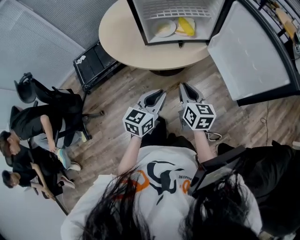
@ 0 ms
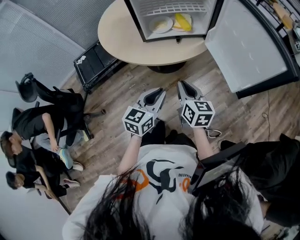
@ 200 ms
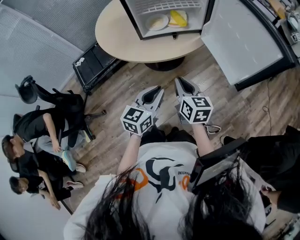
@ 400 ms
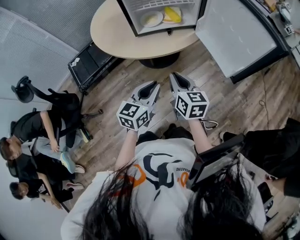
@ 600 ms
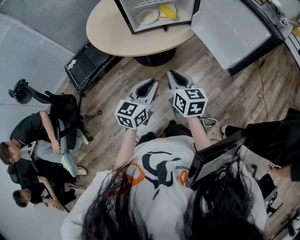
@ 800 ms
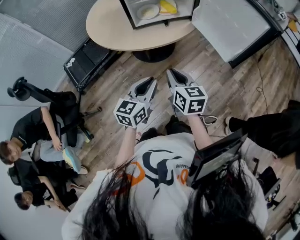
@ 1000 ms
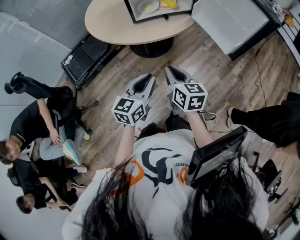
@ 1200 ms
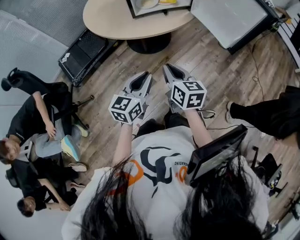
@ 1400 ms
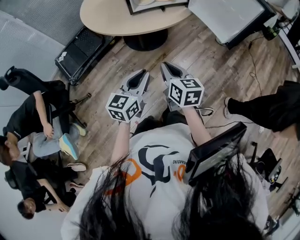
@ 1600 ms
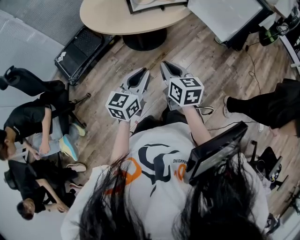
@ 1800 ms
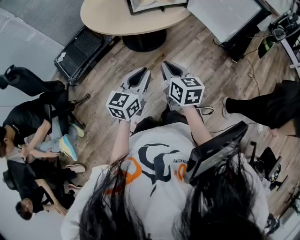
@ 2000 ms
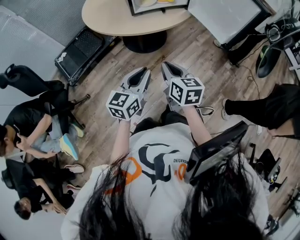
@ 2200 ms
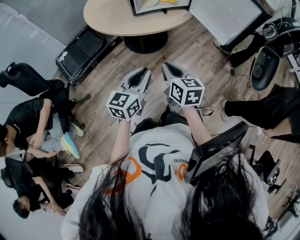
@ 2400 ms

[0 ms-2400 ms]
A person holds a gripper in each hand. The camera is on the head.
0 ms to 1200 ms: Both grippers move backward, roughly 15 cm.
1200 ms to 2400 ms: The right gripper changes place by roughly 5 cm. Meanwhile the left gripper ends up roughly 5 cm from where it was.

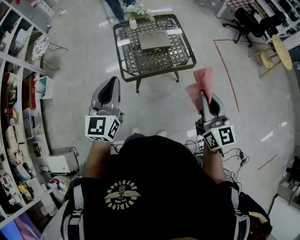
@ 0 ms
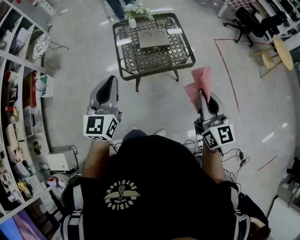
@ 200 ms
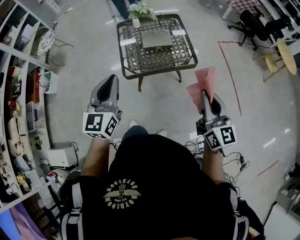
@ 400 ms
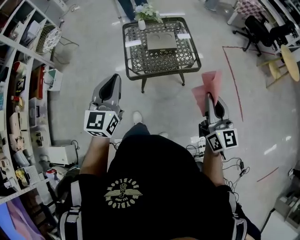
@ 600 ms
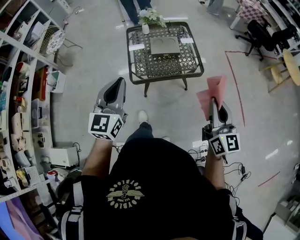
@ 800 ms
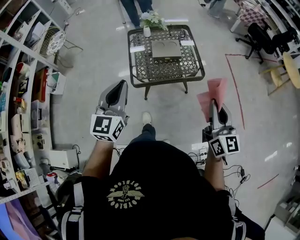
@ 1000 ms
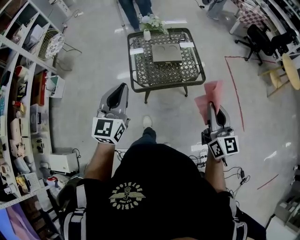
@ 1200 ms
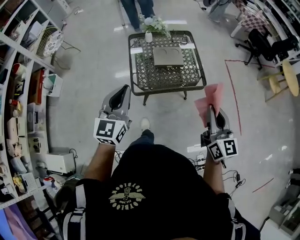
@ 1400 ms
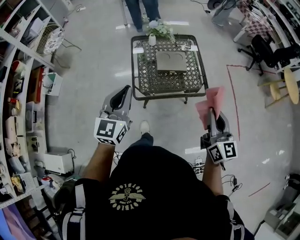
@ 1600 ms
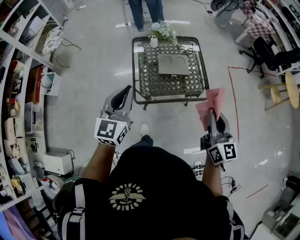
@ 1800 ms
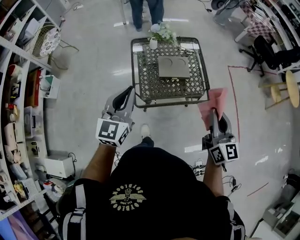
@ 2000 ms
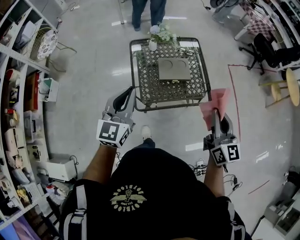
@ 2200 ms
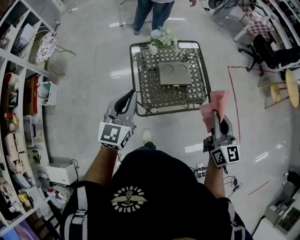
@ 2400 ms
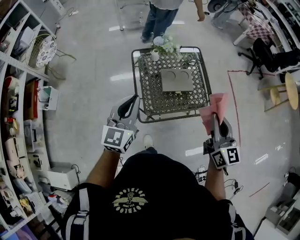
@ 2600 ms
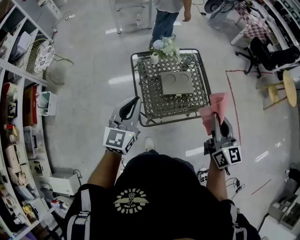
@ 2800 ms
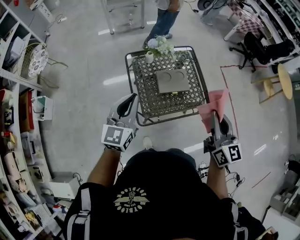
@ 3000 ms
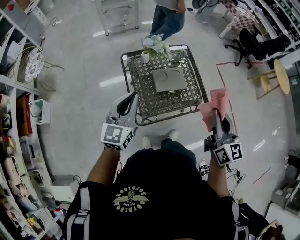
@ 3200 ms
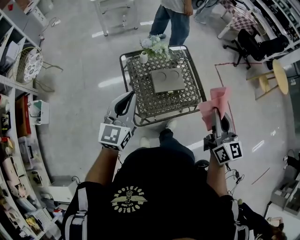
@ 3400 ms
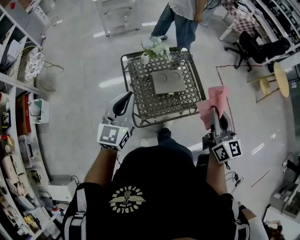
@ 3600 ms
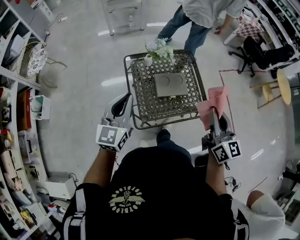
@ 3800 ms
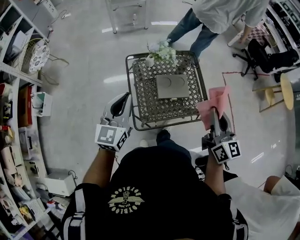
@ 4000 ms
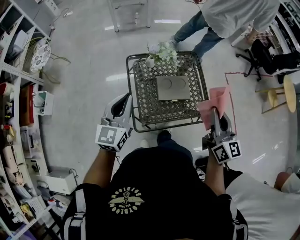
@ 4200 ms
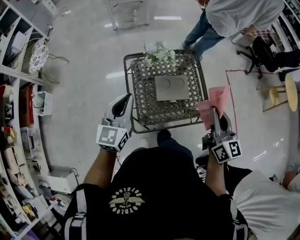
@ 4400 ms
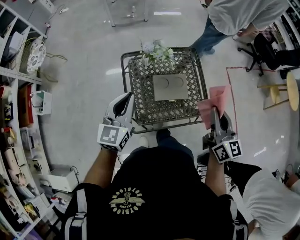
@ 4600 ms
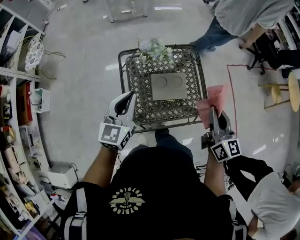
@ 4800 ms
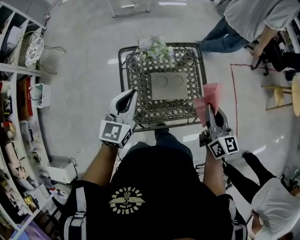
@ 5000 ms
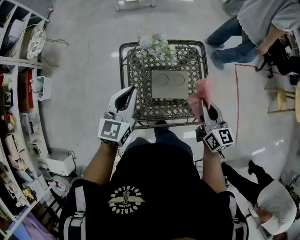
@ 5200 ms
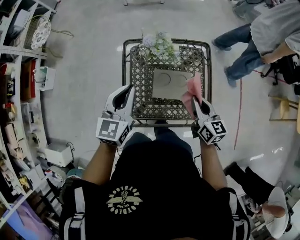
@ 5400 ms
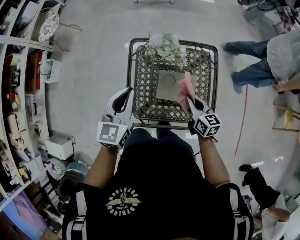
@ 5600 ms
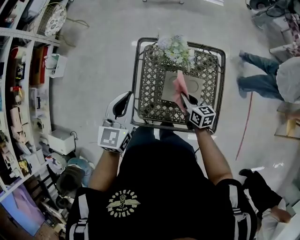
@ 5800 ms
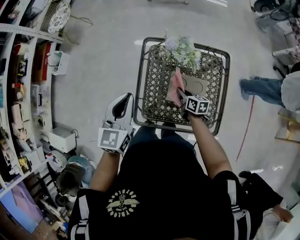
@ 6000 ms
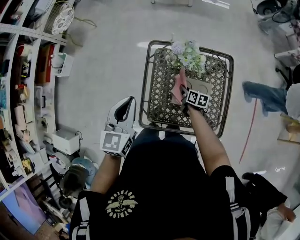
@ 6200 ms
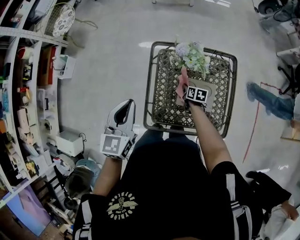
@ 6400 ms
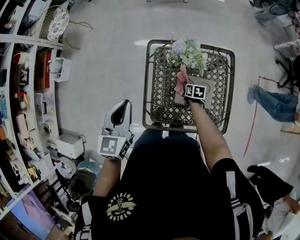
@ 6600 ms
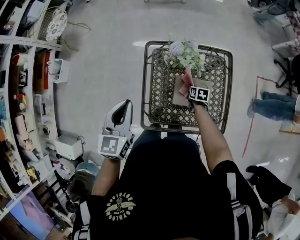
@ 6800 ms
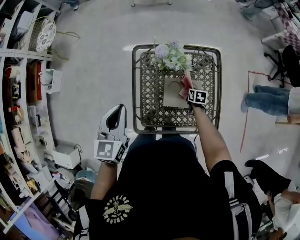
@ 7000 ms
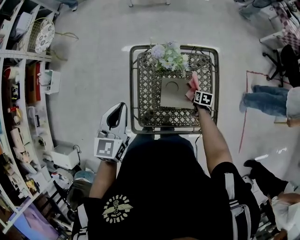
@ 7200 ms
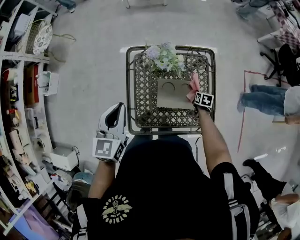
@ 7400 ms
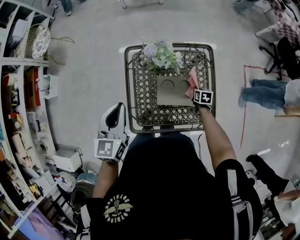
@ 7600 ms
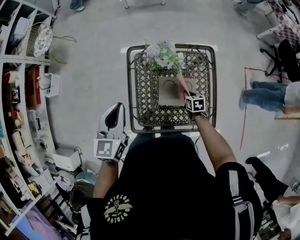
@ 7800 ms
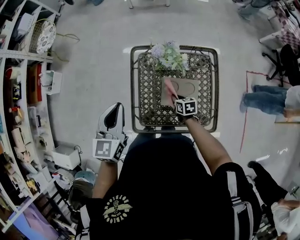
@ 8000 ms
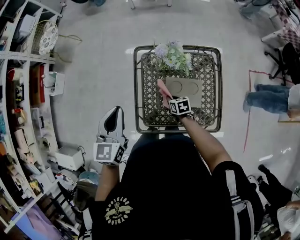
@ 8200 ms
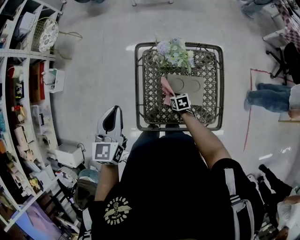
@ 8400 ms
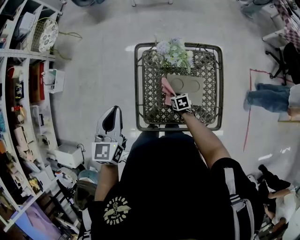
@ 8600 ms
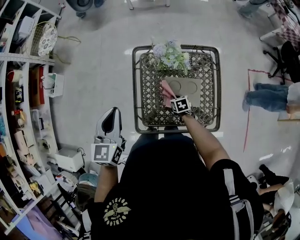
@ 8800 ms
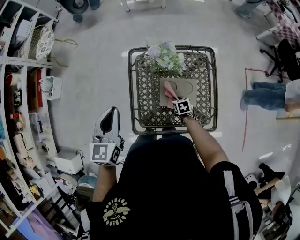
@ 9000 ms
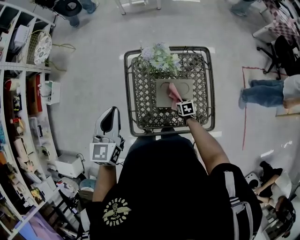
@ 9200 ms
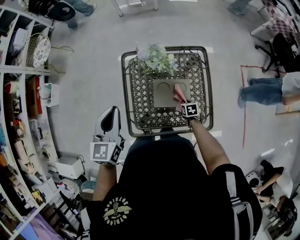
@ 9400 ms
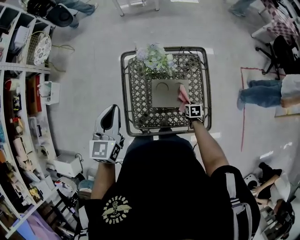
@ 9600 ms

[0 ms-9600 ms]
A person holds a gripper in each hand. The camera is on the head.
0 ms to 1600 ms: Both grippers travel together forward, about 10 cm.
1600 ms to 3200 ms: The right gripper travels forward and to the left by approximately 20 cm, while the left gripper moves forward, about 20 cm.
3200 ms to 4800 ms: Both grippers travel together forward and downward, some 15 cm.
4800 ms to 6400 ms: The right gripper shifts some 40 cm downward, and angles its fingers downward, by some 40 degrees. Meanwhile the left gripper changes place by about 10 cm, and rotates approximately 20 degrees.
6400 ms to 8000 ms: The right gripper shifts roughly 5 cm backward, and moves approximately 20 cm to the right and comes back.
8000 ms to 9600 ms: The right gripper is displaced to the right, backward and downward by about 20 cm; the left gripper changes place by about 5 cm.

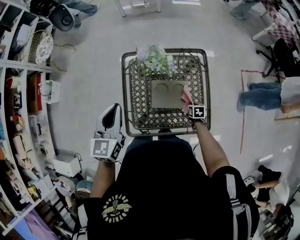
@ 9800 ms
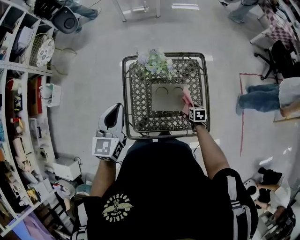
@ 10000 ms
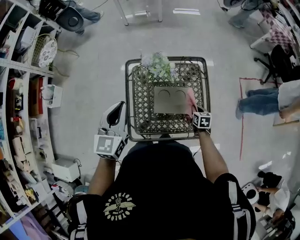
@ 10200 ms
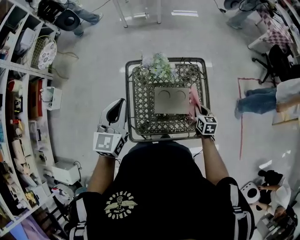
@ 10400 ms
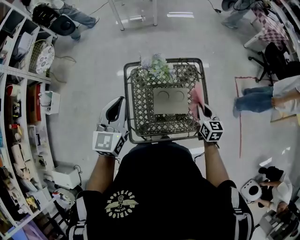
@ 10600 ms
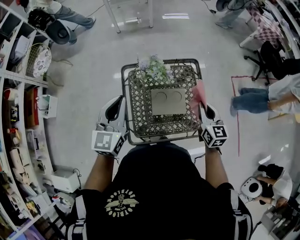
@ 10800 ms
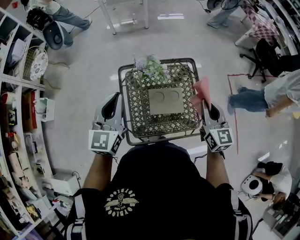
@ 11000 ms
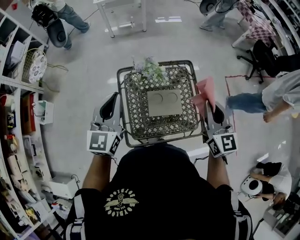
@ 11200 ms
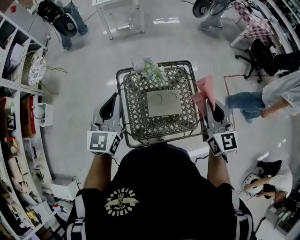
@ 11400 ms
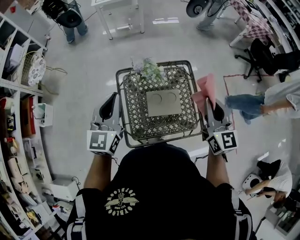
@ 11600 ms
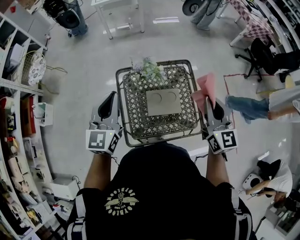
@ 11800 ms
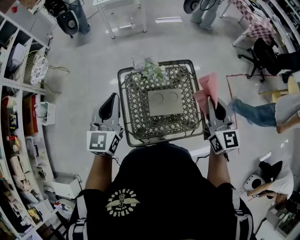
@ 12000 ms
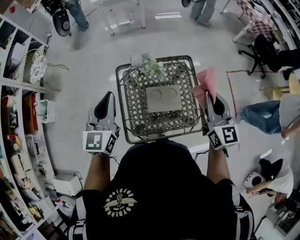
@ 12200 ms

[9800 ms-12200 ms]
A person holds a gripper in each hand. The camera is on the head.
9800 ms to 11000 ms: The right gripper shifts roughly 40 cm upward, and points its fingers roughly 50 degrees further upward, while the left gripper heads upward, covering about 10 cm.
11000 ms to 12200 ms: The right gripper goes approximately 5 cm upward.

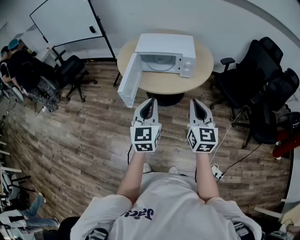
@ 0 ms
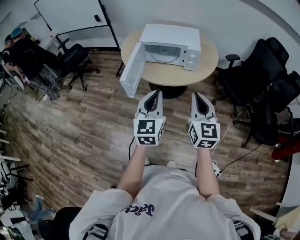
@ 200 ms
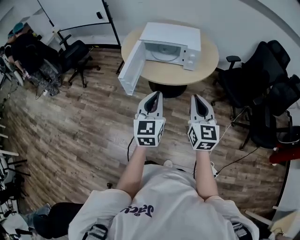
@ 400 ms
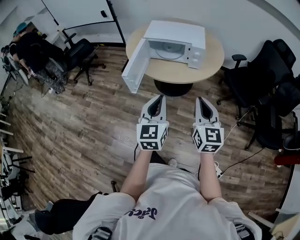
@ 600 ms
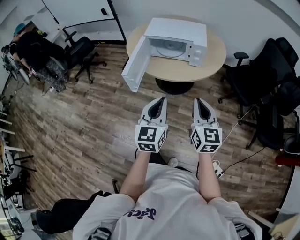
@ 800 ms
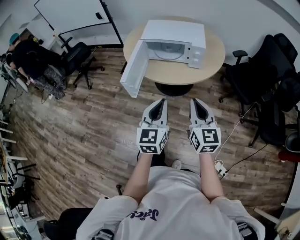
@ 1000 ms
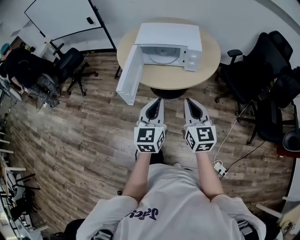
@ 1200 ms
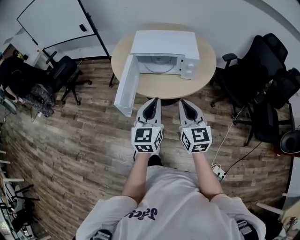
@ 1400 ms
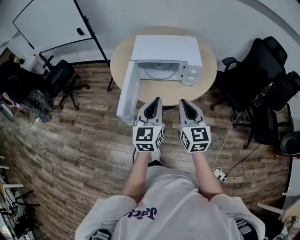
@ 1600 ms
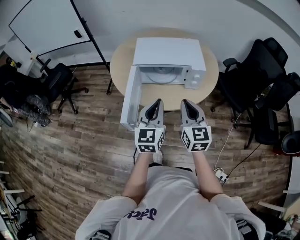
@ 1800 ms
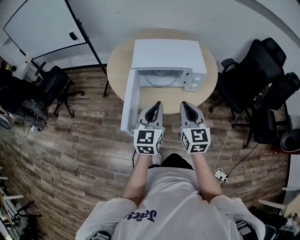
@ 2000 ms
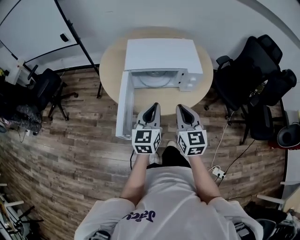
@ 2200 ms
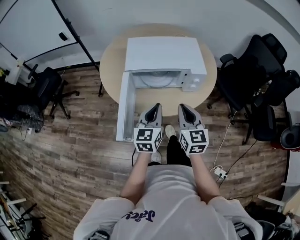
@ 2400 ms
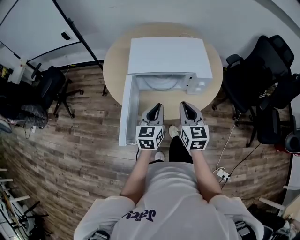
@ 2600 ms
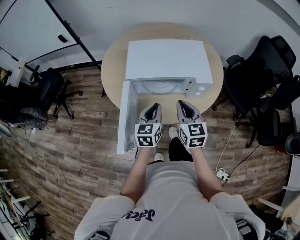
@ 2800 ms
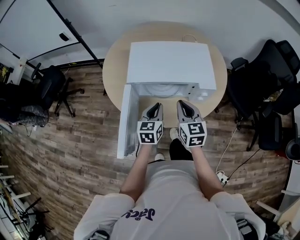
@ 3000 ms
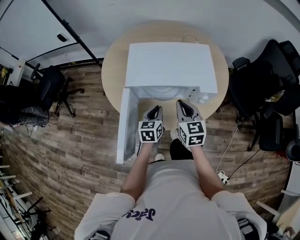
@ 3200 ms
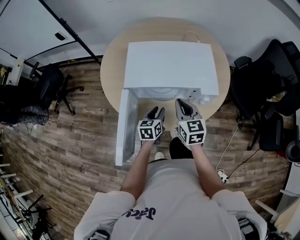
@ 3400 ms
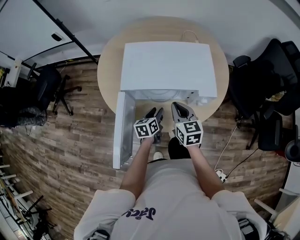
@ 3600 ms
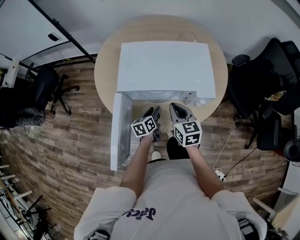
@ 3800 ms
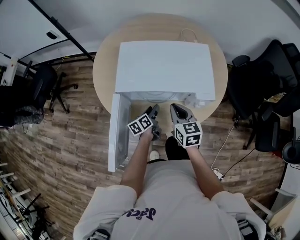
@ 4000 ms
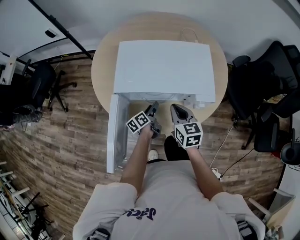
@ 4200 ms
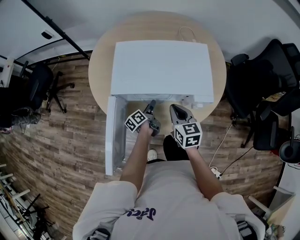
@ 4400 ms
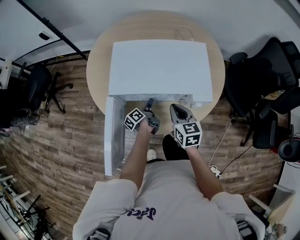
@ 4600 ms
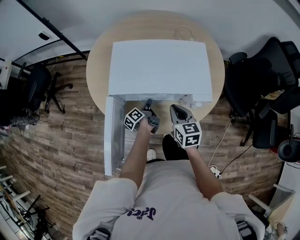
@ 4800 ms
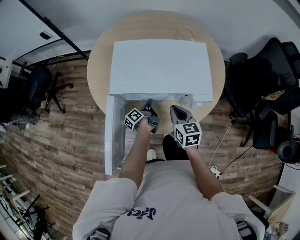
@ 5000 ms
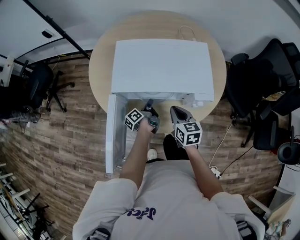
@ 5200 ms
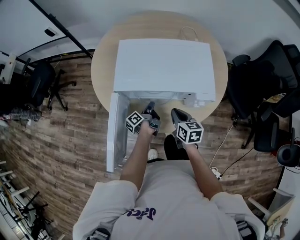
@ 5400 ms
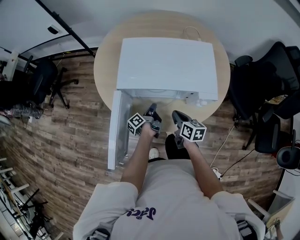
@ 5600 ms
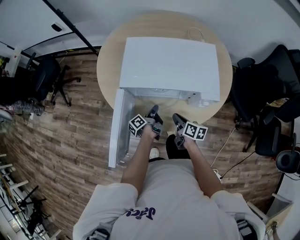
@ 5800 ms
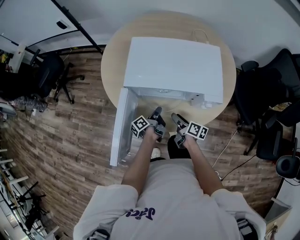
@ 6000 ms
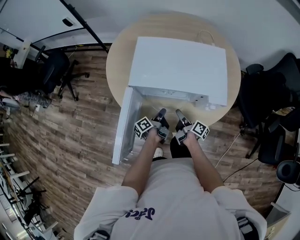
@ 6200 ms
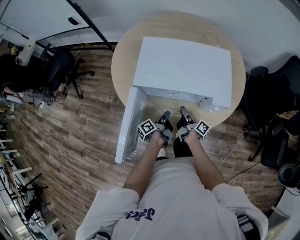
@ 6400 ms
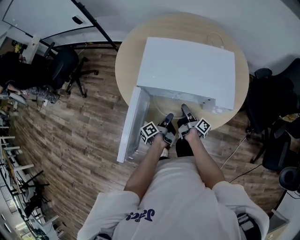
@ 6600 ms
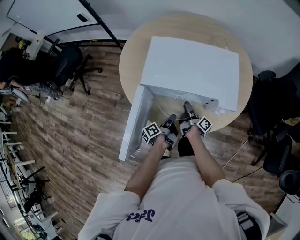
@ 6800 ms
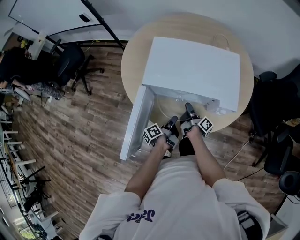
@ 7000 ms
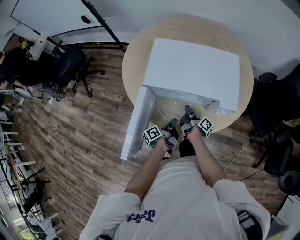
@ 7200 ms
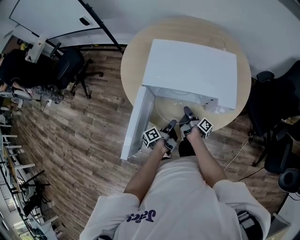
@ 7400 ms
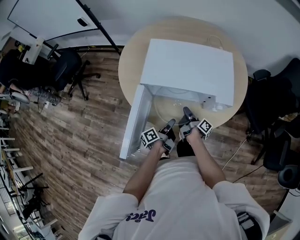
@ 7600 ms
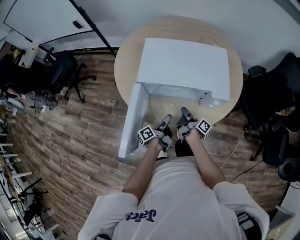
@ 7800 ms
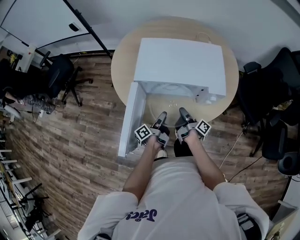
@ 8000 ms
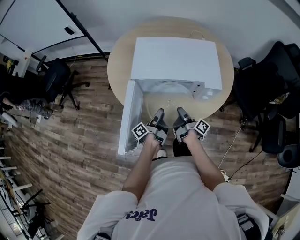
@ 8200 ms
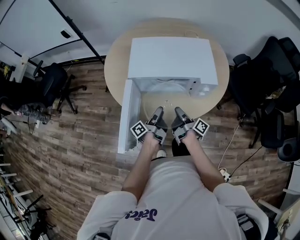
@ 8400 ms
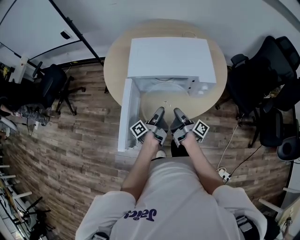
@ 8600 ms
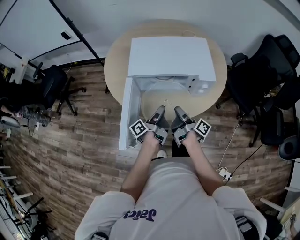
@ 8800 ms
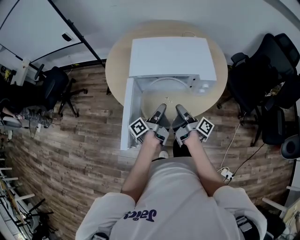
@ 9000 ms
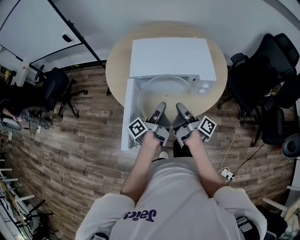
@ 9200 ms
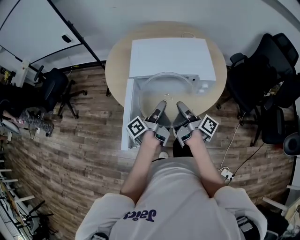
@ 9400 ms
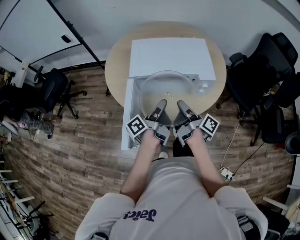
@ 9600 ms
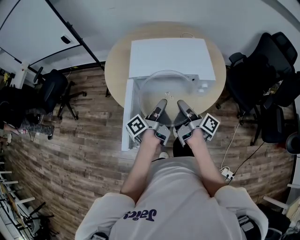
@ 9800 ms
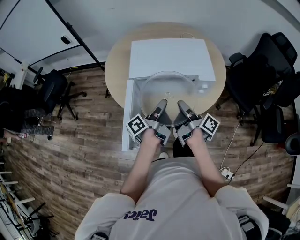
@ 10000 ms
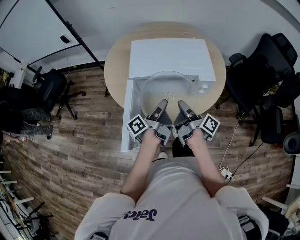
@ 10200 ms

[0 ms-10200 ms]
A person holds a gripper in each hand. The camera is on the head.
0 ms to 1400 ms: The right gripper moves forward and to the left, about 10 cm. The left gripper moves forward, approximately 10 cm.
1400 ms to 3000 ms: The right gripper shifts about 25 cm forward. The left gripper is displaced forward and downward by some 35 cm, and turns by some 20 degrees.
3000 ms to 4400 ms: The right gripper heads downward and forward, covering roughly 10 cm, while the left gripper travels downward and forward by approximately 20 cm, rolls counterclockwise, seen from behind, by approximately 60 degrees, and opens its fingers.
4400 ms to 5800 ms: The left gripper closes its fingers, while the right gripper shifts approximately 15 cm downward, and swivels approximately 40 degrees.
5800 ms to 7200 ms: The right gripper moves forward, some 5 cm, rolls clockwise, seen from behind, by about 40 degrees, and opens, then closes again. Meanwhile the left gripper is displaced backward by about 5 cm.
7200 ms to 8800 ms: The right gripper moves upward and backward, about 20 cm. Meanwhile the left gripper shifts approximately 10 cm upward, and opens, then closes once more.
8800 ms to 10200 ms: Both grippers travel together upward, some 10 cm.
